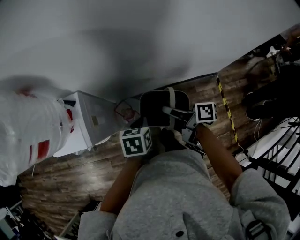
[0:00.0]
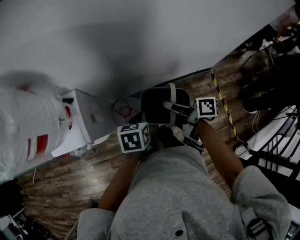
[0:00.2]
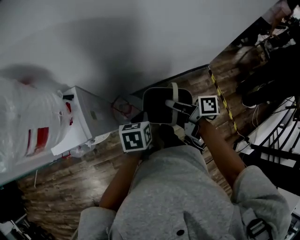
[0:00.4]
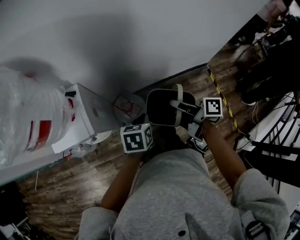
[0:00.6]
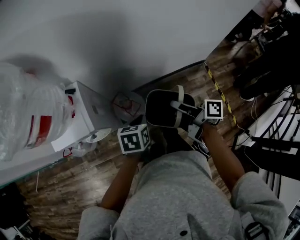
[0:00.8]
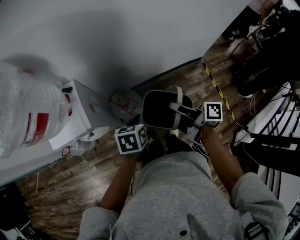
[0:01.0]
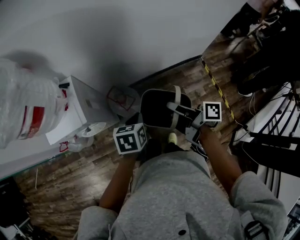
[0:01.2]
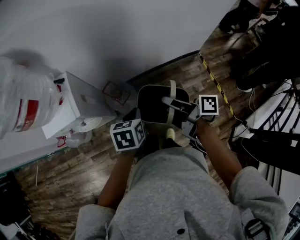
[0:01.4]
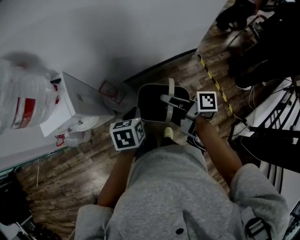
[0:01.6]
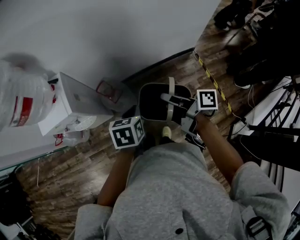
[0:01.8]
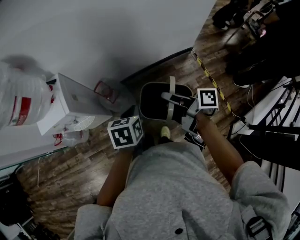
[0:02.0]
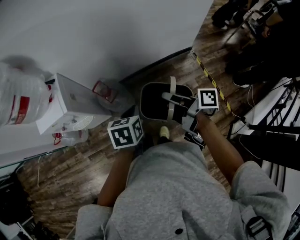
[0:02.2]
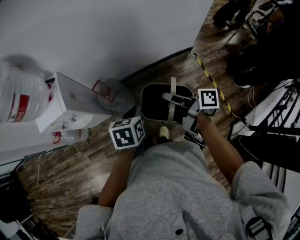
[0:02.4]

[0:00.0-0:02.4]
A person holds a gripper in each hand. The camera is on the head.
0:00.0 to 0:01.2: Both grippers travel together backward, roughly 15 cm.
0:01.2 to 0:02.4: The grippers both shift to the right and backward by about 15 cm.

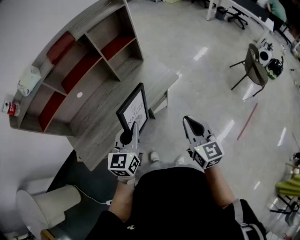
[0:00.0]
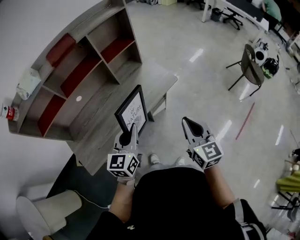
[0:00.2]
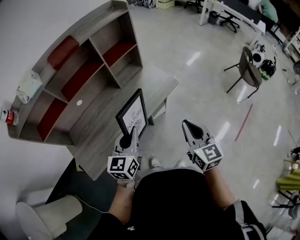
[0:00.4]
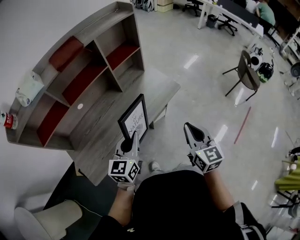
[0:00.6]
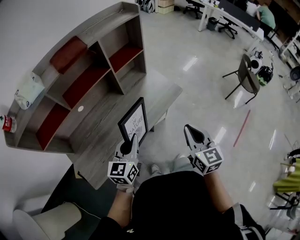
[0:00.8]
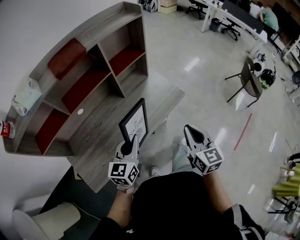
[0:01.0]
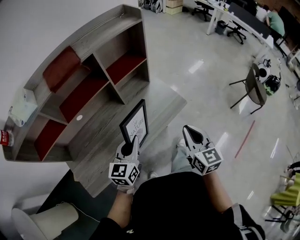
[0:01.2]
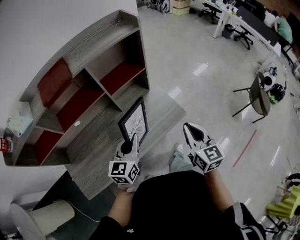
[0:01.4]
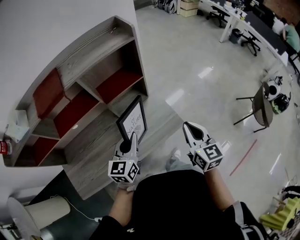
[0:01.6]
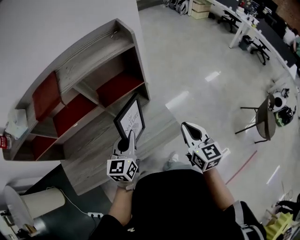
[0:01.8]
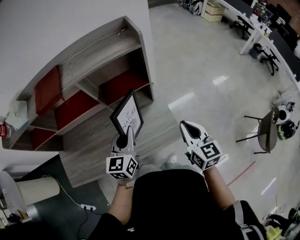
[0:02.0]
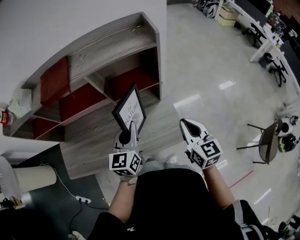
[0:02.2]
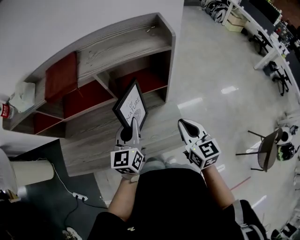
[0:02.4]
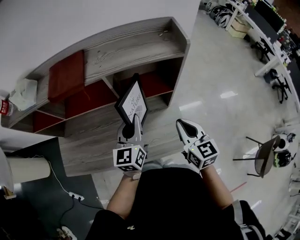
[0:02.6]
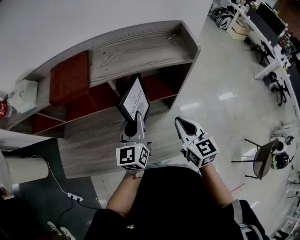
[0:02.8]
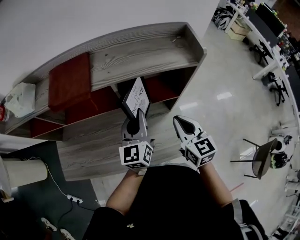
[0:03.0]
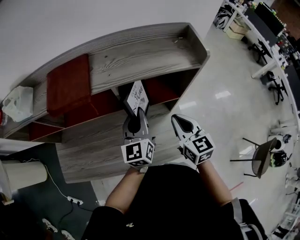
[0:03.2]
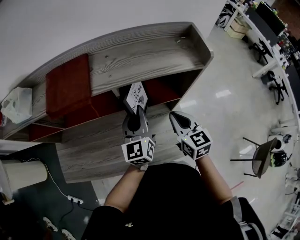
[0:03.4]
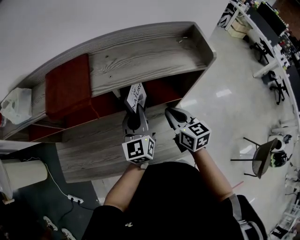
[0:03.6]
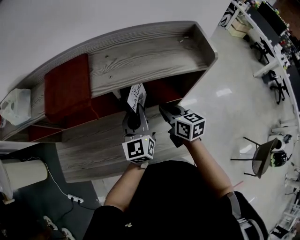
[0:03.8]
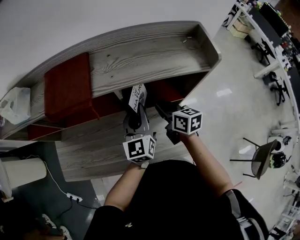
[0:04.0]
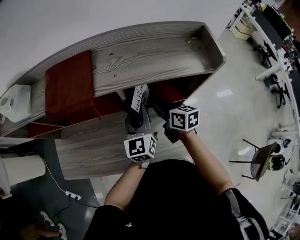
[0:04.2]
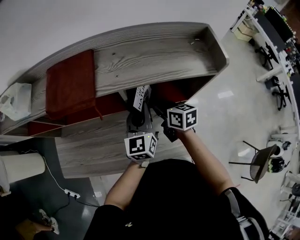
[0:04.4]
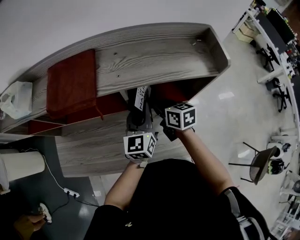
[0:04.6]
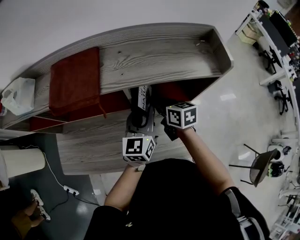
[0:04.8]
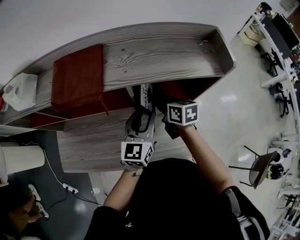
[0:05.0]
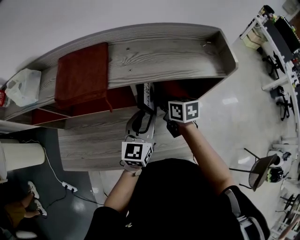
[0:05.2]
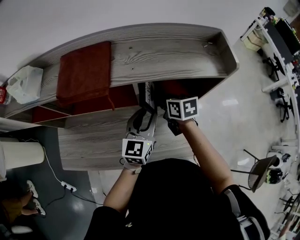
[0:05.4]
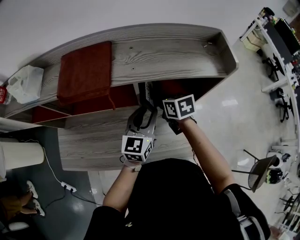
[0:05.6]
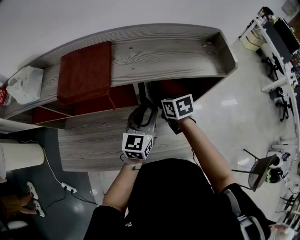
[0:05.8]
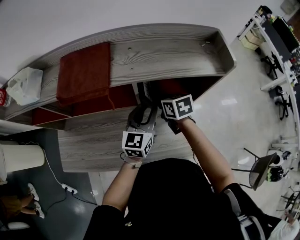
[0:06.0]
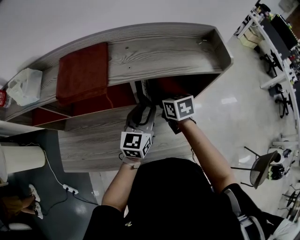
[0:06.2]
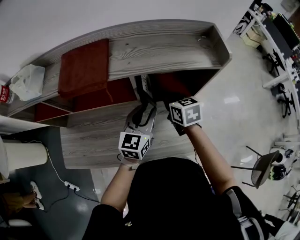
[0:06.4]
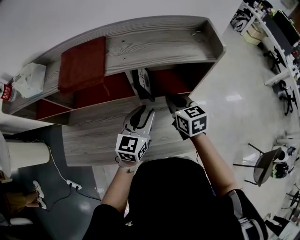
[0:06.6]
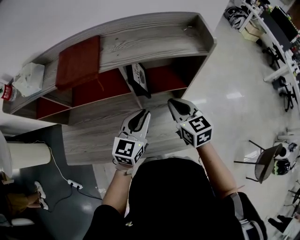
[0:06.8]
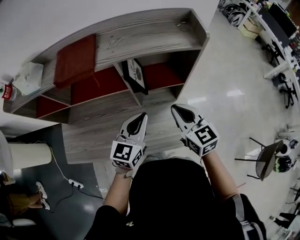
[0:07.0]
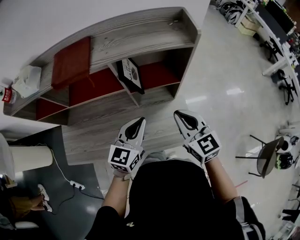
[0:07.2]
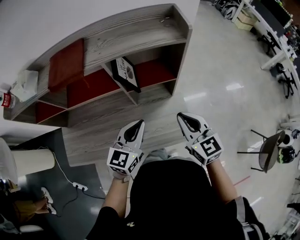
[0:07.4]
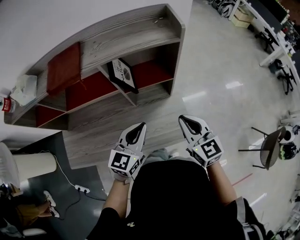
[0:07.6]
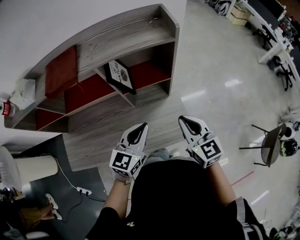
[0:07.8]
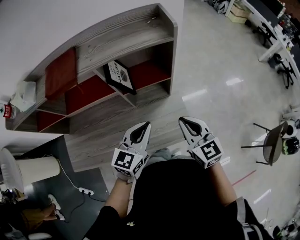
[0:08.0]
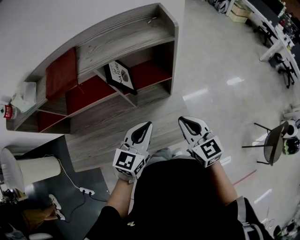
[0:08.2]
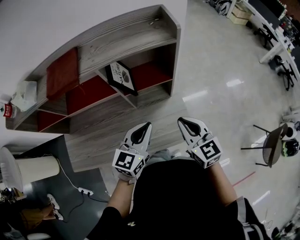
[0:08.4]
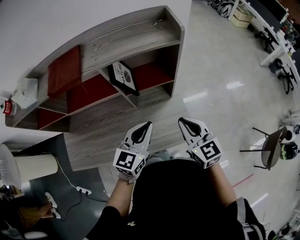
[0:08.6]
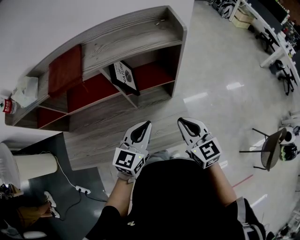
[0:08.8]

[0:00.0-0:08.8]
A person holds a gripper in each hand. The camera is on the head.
0:00.0 to 0:01.4: The two grippers go roughly 20 cm forward.
0:01.4 to 0:03.0: The right gripper moves some 25 cm, and swivels approximately 30 degrees. The left gripper changes place by roughly 25 cm, and rotates approximately 40 degrees.
0:03.0 to 0:04.4: The right gripper travels forward, downward and to the left by approximately 20 cm, and rotates roughly 30 degrees, while the left gripper is displaced forward by about 5 cm.
0:04.4 to 0:05.8: The right gripper swivels roughly 20 degrees; the left gripper opens up.
0:05.8 to 0:07.4: The right gripper heads backward, to the right and upward, covering approximately 25 cm, and swivels roughly 30 degrees. The left gripper goes approximately 15 cm backward, and closes its fingers.
0:07.4 to 0:08.8: The grippers make only small movements.

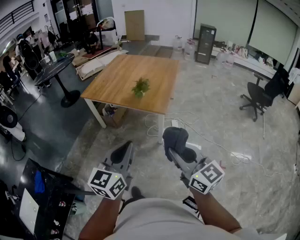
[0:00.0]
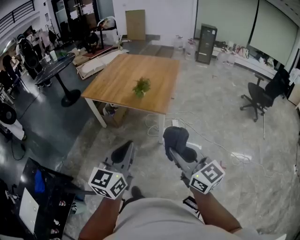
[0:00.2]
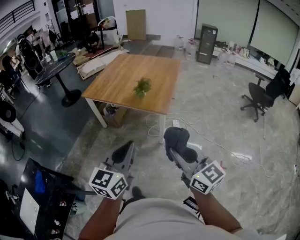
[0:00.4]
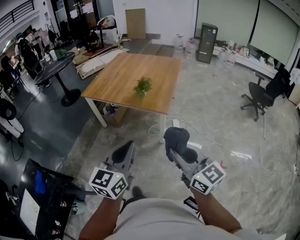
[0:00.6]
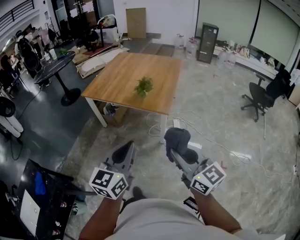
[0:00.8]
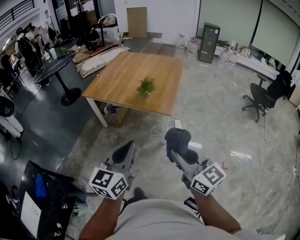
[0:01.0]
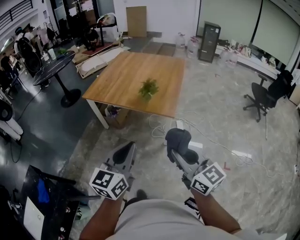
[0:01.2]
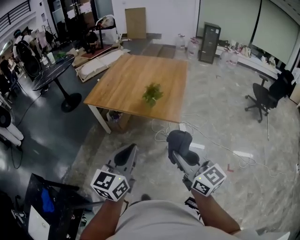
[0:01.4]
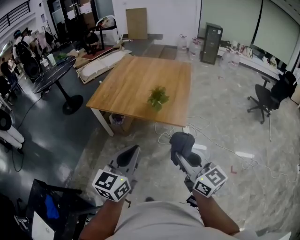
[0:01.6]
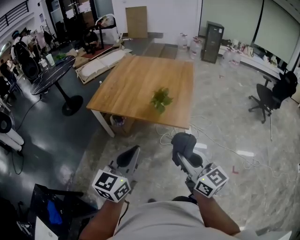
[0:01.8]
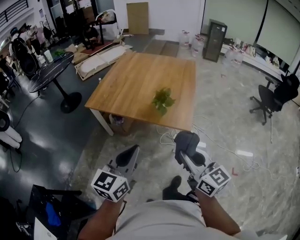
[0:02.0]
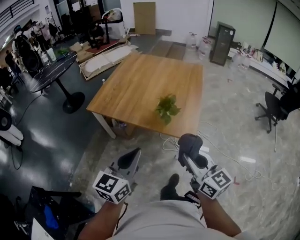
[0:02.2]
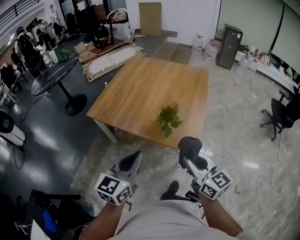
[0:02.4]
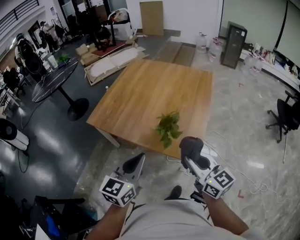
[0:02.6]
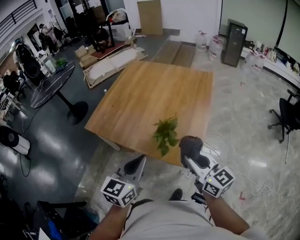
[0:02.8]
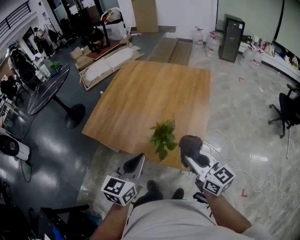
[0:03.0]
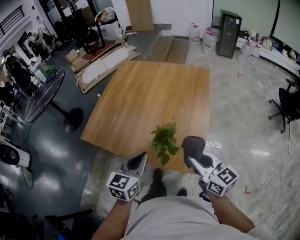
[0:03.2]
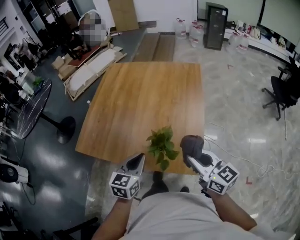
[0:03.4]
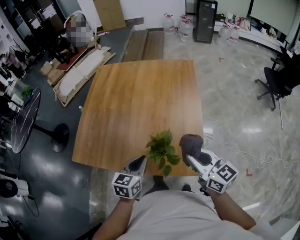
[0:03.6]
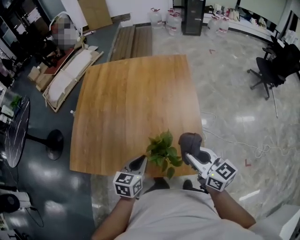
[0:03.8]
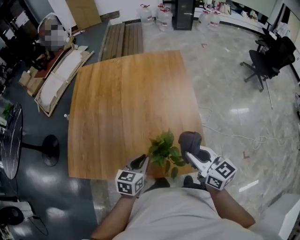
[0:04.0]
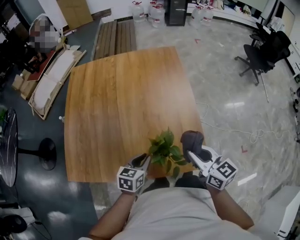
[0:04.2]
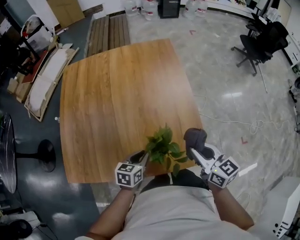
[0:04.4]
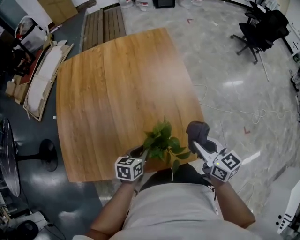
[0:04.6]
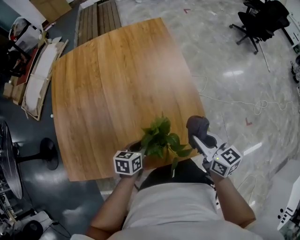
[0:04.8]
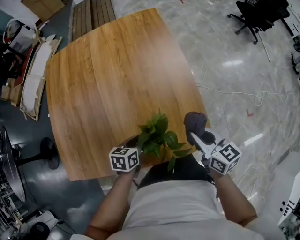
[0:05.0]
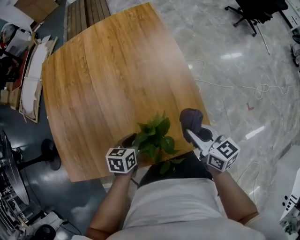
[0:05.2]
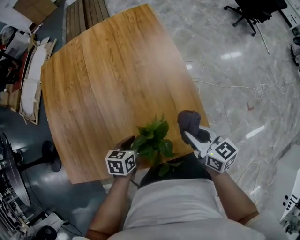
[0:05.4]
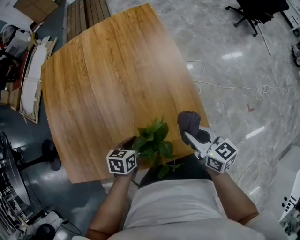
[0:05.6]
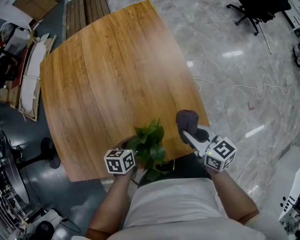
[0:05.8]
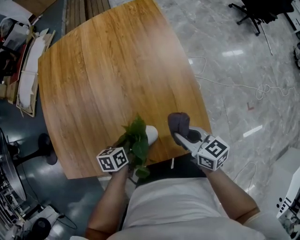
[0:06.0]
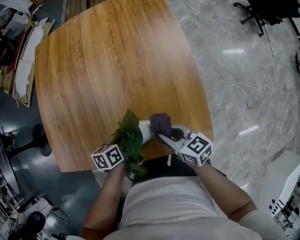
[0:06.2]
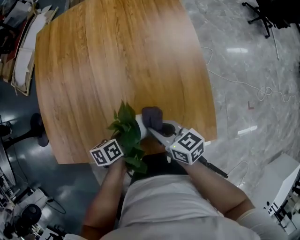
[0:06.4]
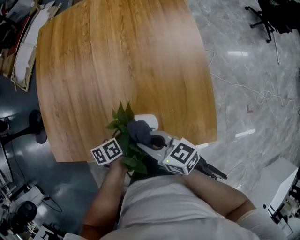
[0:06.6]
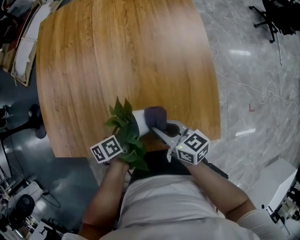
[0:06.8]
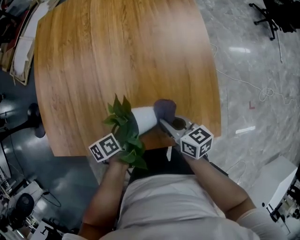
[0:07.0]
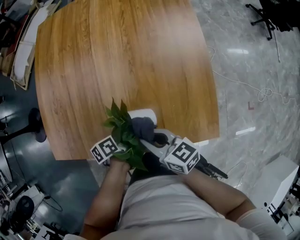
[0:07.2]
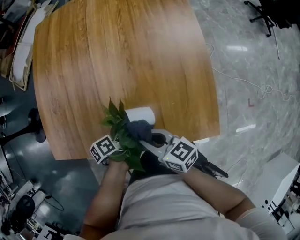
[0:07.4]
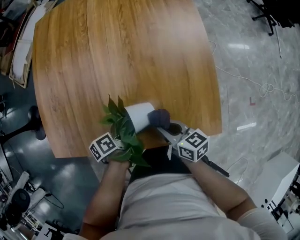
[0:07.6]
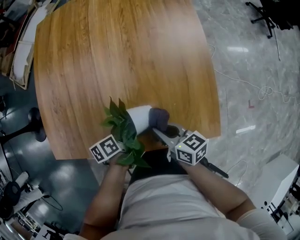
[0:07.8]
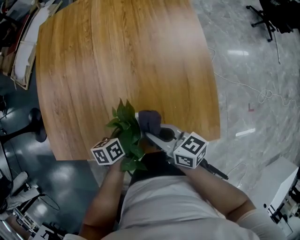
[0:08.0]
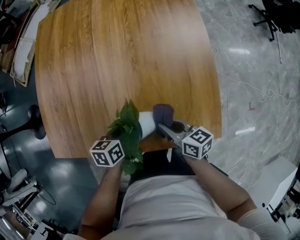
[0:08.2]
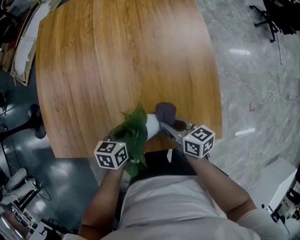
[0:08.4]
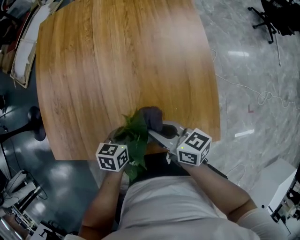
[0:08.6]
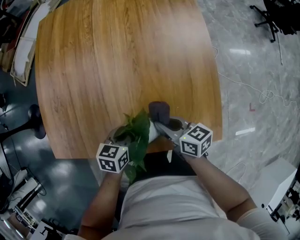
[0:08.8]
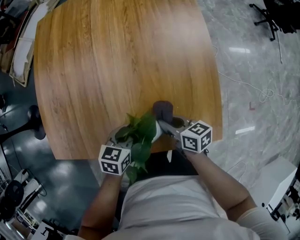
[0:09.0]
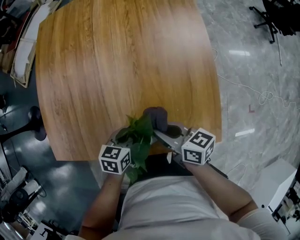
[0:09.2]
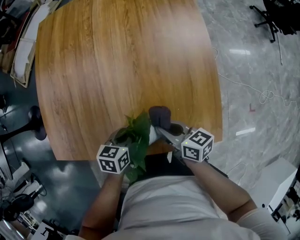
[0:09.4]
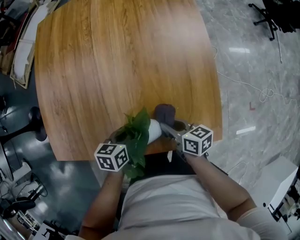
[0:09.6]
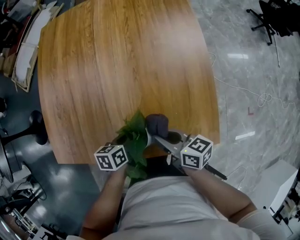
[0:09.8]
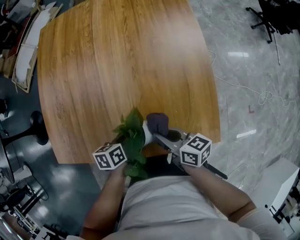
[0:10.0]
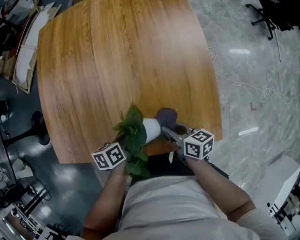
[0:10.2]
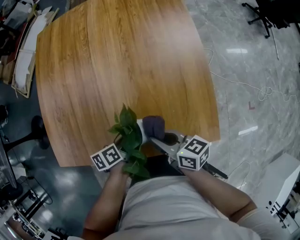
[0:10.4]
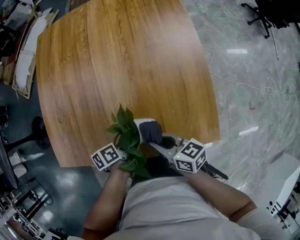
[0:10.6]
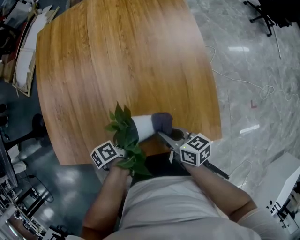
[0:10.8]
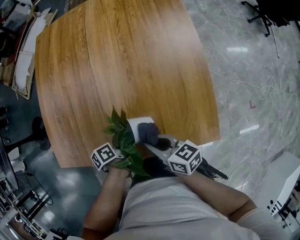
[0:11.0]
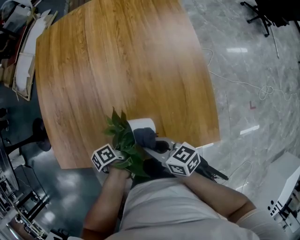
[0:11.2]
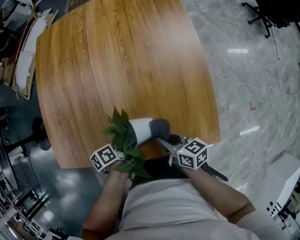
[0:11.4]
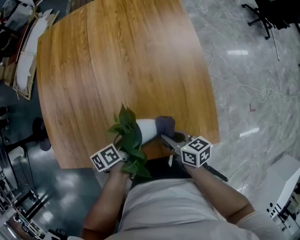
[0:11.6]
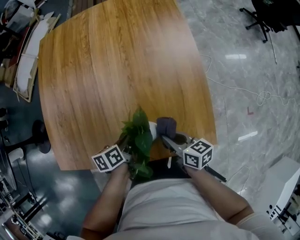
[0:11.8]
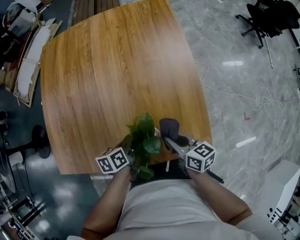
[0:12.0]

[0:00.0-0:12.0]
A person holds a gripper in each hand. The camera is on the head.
0:00.0 to 0:01.6: Both grippers travel together forward and to the left, some 25 cm.
0:01.6 to 0:03.0: The two grippers travel together, forward, approximately 50 cm.
0:03.0 to 0:04.4: The right gripper shifts by approximately 20 cm, and swivels roughly 30 degrees, while the left gripper travels downward by some 25 cm, and changes its angle by some 40 degrees.
0:04.4 to 0:06.0: Both grippers move downward, some 15 cm.
0:06.0 to 0:07.6: The right gripper goes left and right, roughly 20 cm each way, reversing 3 times; the left gripper moves downward, approximately 5 cm, and swivels roughly 40 degrees.
0:07.6 to 0:09.0: The right gripper moves up and down over some 10 cm, changing direction 3 times, while the left gripper changes place by some 5 cm, and rolls clockwise, seen from behind, by roughly 60 degrees.
0:09.0 to 0:10.4: The right gripper goes up and down, approximately 10 cm each way, reversing 4 times. The left gripper rolls counterclockwise, seen from behind, by roughly 40 degrees.
0:10.4 to 0:12.0: The left gripper ends up some 5 cm from where it was. Meanwhile the right gripper travels to the right by about 10 cm.
